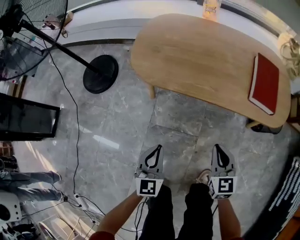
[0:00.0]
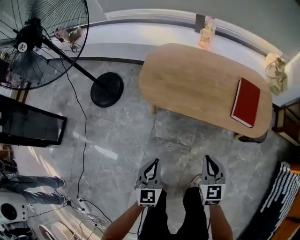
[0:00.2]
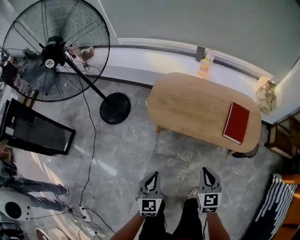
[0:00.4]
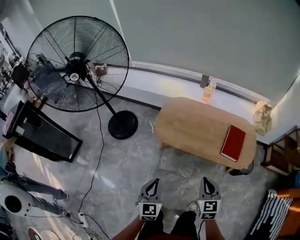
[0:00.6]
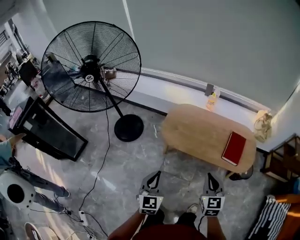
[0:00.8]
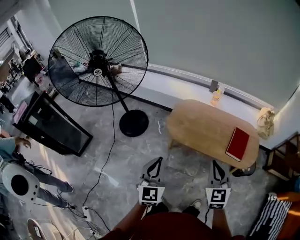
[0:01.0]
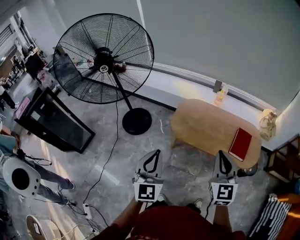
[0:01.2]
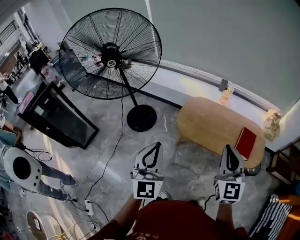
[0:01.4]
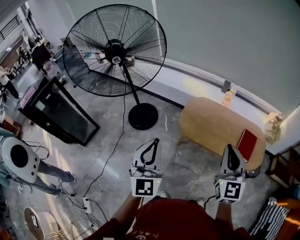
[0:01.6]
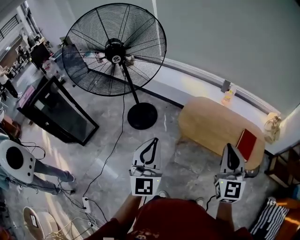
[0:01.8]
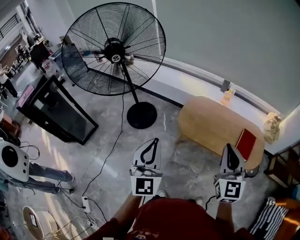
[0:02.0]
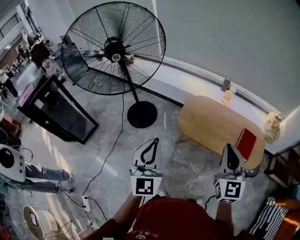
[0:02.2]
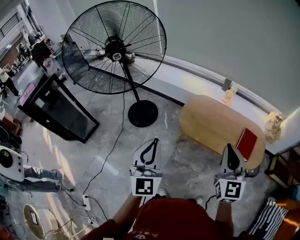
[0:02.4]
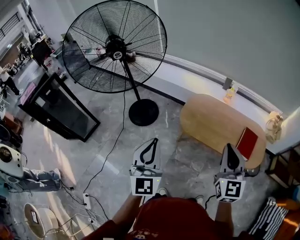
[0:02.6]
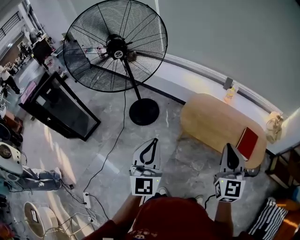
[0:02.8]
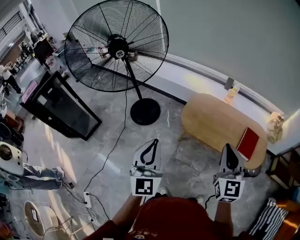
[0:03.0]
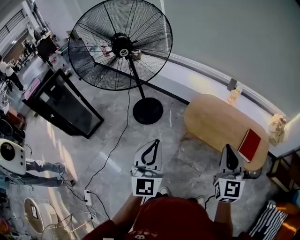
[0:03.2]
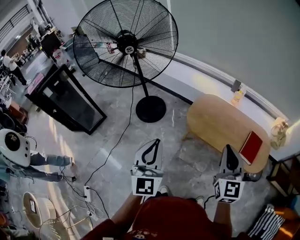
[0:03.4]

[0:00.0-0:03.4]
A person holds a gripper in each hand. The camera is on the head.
0:00.0 to 0:01.6: The two grippers go about 60 cm upward. The left gripper turns by about 30 degrees, while the right gripper turns by roughly 30 degrees.
0:01.6 to 0:03.4: There are only small adjustments of the grippers.

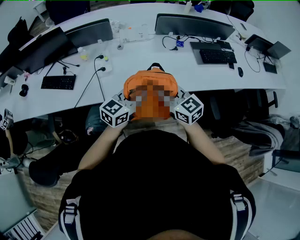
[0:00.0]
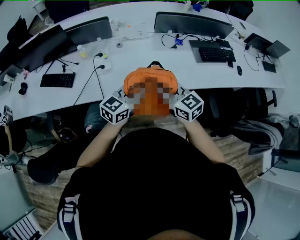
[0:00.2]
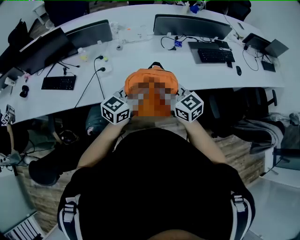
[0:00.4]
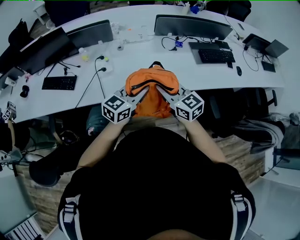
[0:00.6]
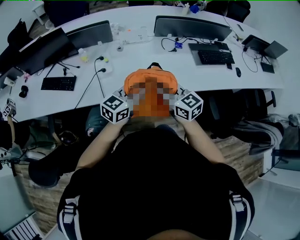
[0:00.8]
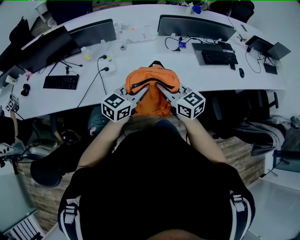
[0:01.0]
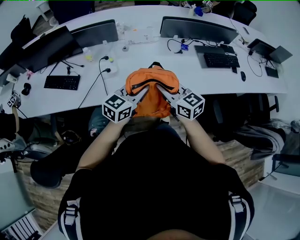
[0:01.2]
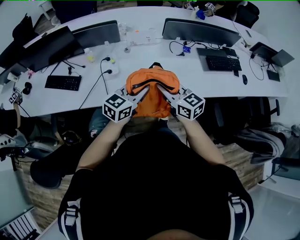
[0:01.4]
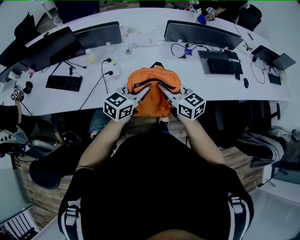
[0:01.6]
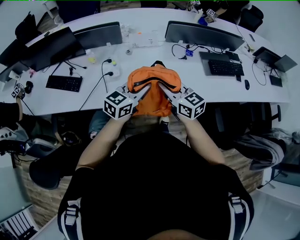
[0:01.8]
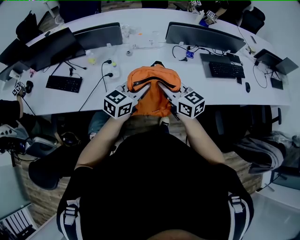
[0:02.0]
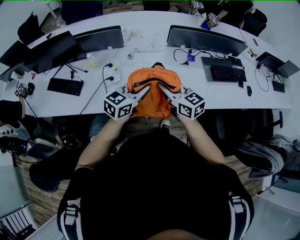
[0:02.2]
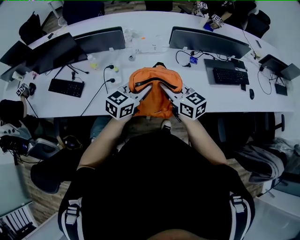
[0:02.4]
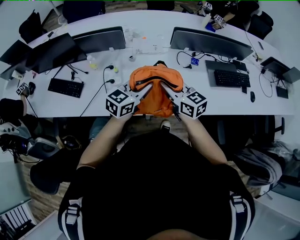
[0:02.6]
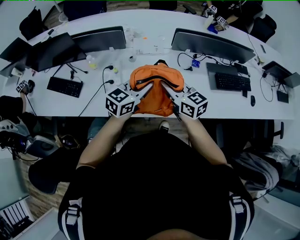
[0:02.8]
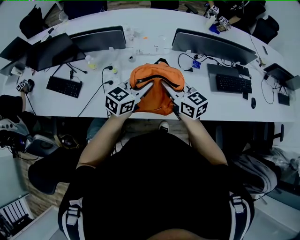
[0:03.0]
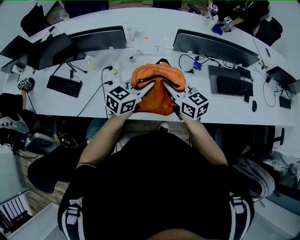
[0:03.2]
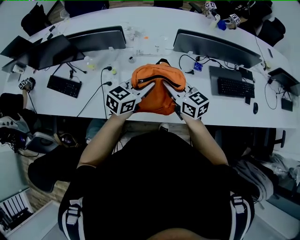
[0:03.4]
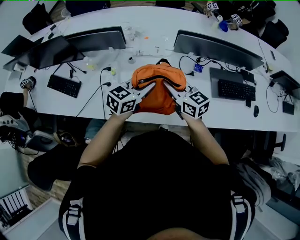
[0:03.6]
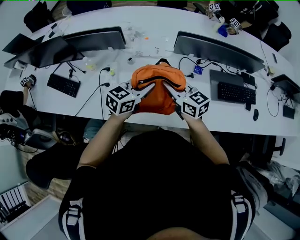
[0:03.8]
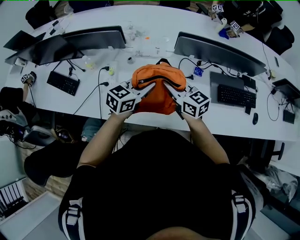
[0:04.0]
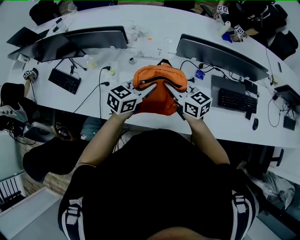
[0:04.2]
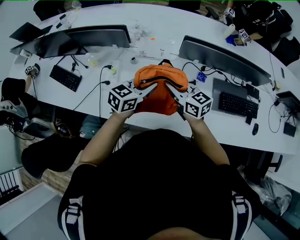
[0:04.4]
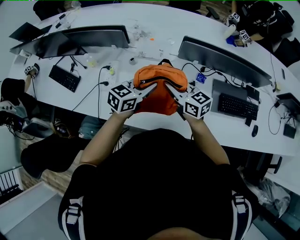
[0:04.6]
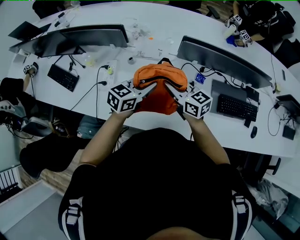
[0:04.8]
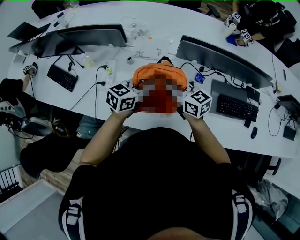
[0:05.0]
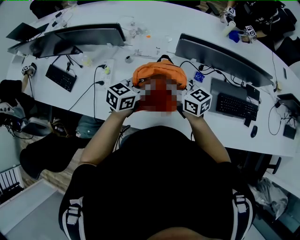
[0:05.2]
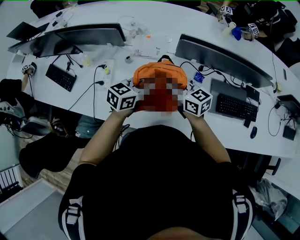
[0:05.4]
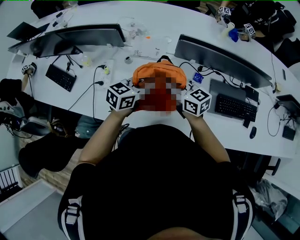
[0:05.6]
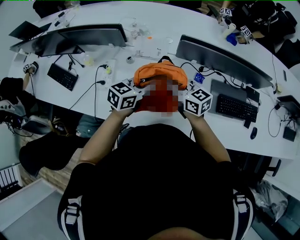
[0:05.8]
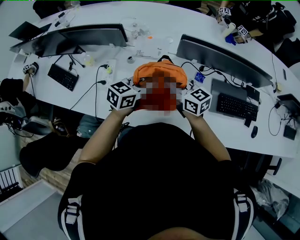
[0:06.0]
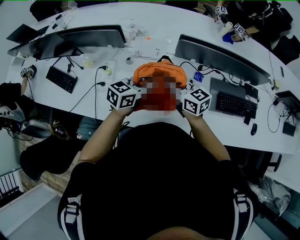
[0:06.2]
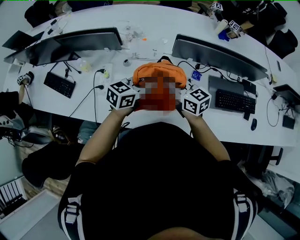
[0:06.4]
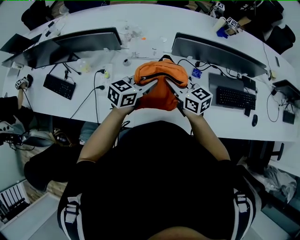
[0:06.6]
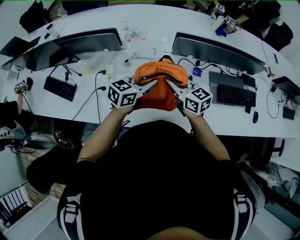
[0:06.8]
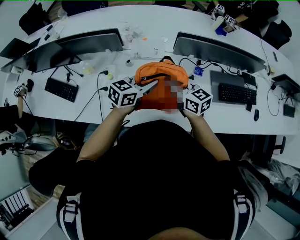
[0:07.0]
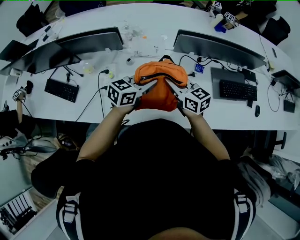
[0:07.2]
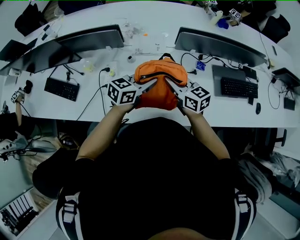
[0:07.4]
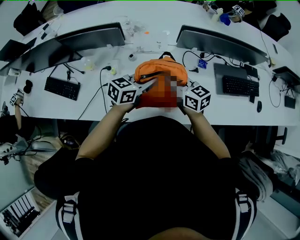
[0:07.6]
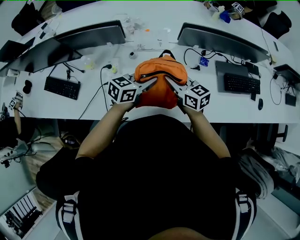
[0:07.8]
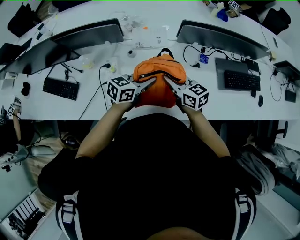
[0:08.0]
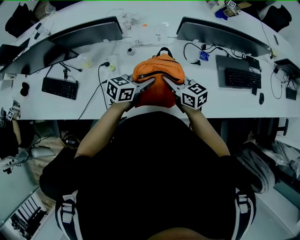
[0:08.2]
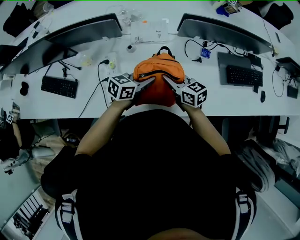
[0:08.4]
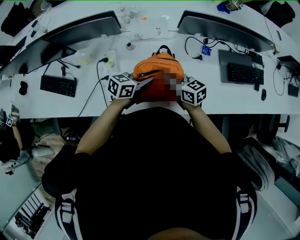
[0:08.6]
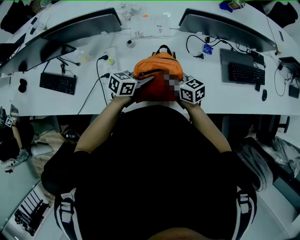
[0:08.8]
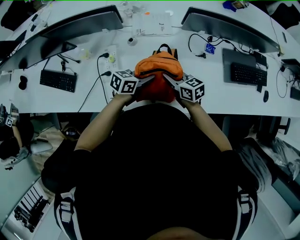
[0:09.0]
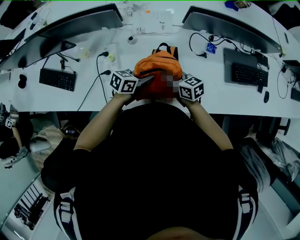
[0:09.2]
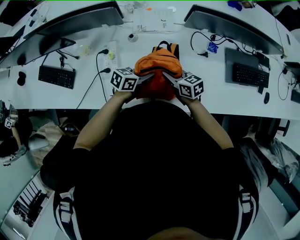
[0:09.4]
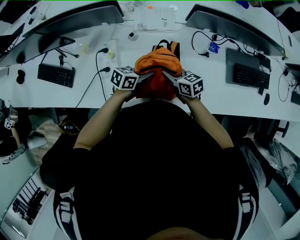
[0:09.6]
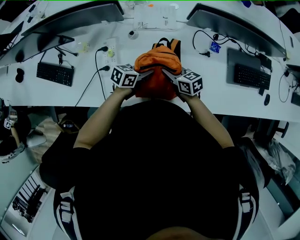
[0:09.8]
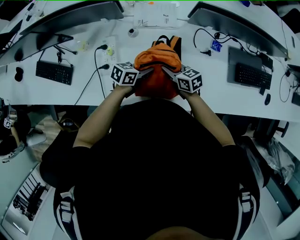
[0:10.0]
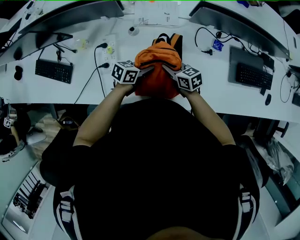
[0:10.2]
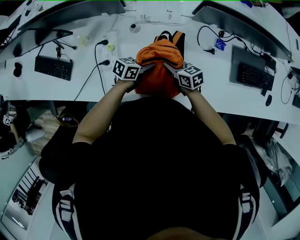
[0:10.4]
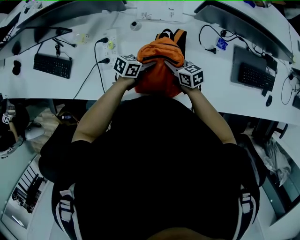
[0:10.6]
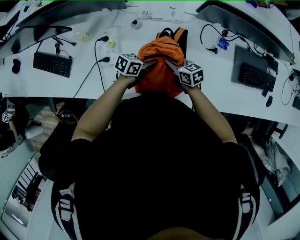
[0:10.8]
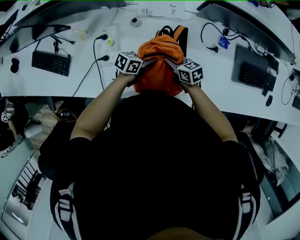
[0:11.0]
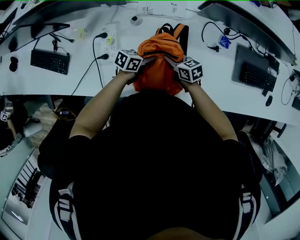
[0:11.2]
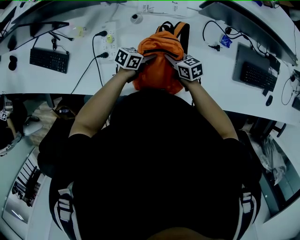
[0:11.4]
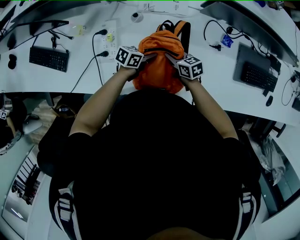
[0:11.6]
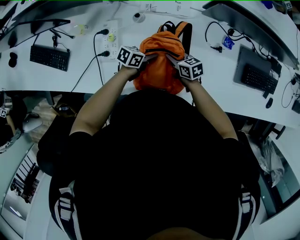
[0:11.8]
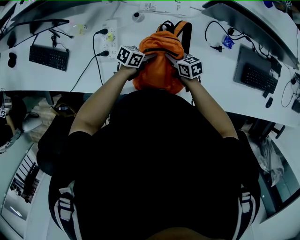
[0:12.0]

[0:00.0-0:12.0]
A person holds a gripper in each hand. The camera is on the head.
0:00.0 to 0:01.6: Both grippers move forward, about 5 cm.
0:01.6 to 0:03.0: Both grippers travel together forward, about 15 cm.
0:03.0 to 0:04.4: Both grippers move forward and to the right, roughly 15 cm.
0:04.4 to 0:06.0: There are only small adjustments of the grippers.
0:06.0 to 0:07.6: The two grippers go some 10 cm to the left.
0:07.6 to 0:09.0: Both grippers travel together downward, roughly 15 cm.
0:09.0 to 0:10.4: Both grippers travel together downward, some 10 cm.
0:10.4 to 0:12.0: Both grippers travel together downward, about 10 cm.

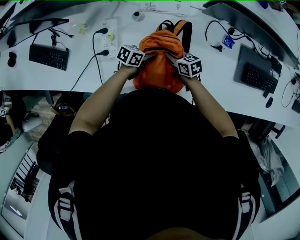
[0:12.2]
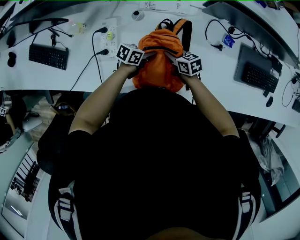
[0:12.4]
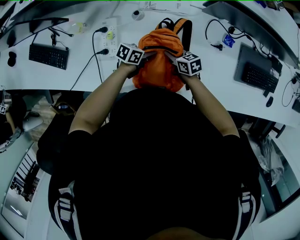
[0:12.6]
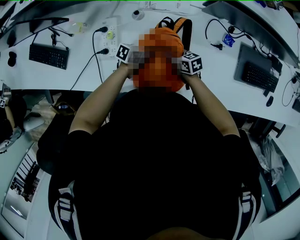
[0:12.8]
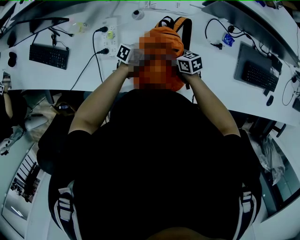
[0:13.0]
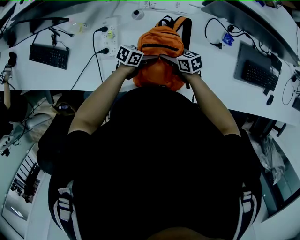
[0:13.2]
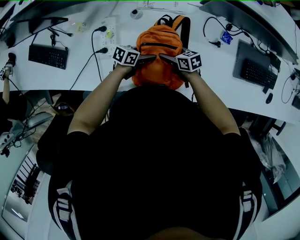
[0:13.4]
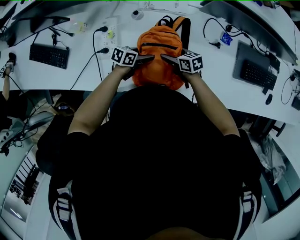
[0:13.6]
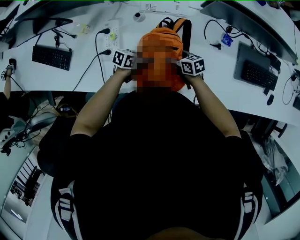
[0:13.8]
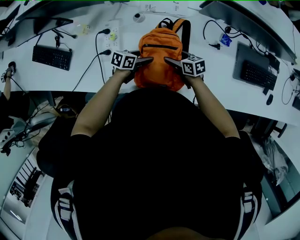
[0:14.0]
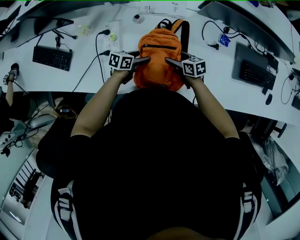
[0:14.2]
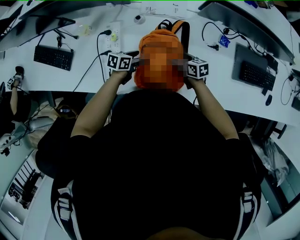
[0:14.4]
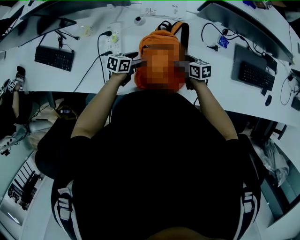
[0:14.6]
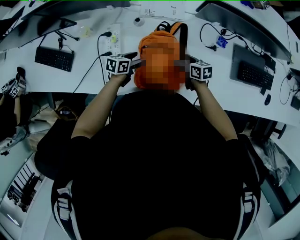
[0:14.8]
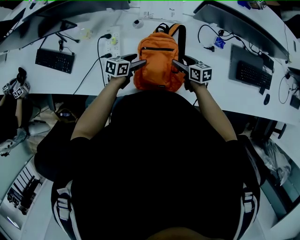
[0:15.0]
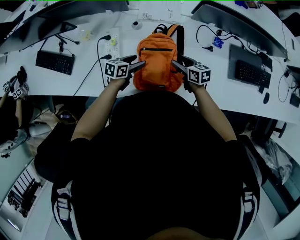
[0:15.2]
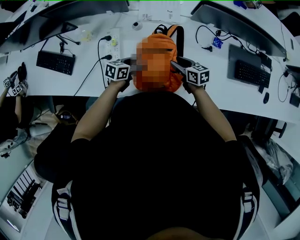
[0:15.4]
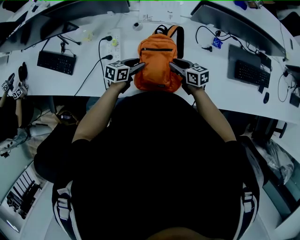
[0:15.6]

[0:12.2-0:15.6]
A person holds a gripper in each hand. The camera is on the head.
0:12.2 to 0:13.8: The left gripper opens. Meanwhile the right gripper opens its fingers.
0:13.8 to 0:15.6: Both grippers travel together upward, roughly 10 cm. The right gripper closes. Meanwhile the left gripper closes up.

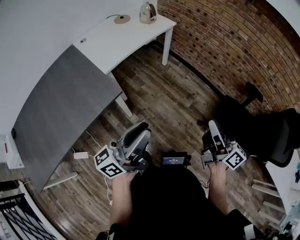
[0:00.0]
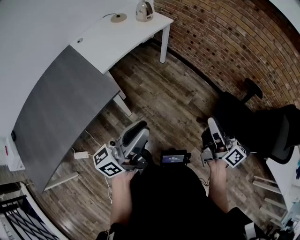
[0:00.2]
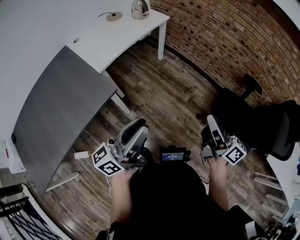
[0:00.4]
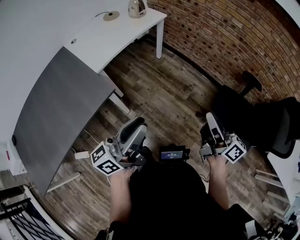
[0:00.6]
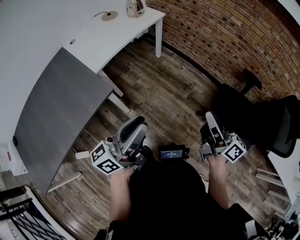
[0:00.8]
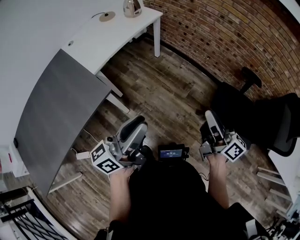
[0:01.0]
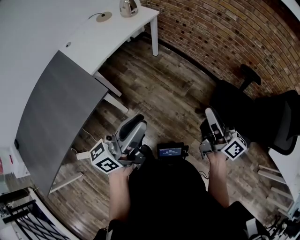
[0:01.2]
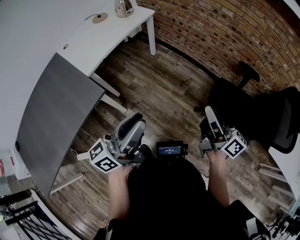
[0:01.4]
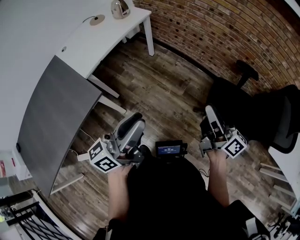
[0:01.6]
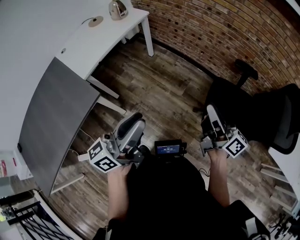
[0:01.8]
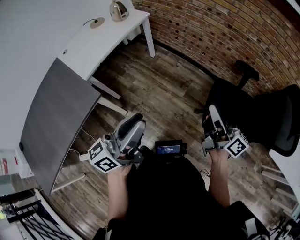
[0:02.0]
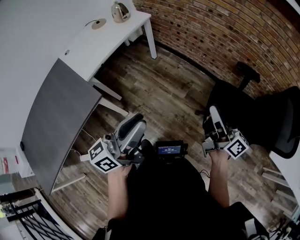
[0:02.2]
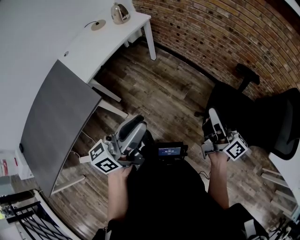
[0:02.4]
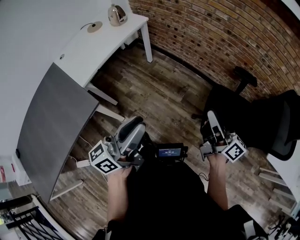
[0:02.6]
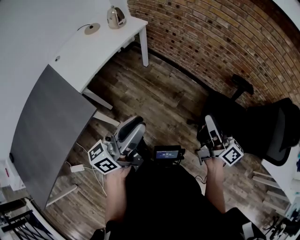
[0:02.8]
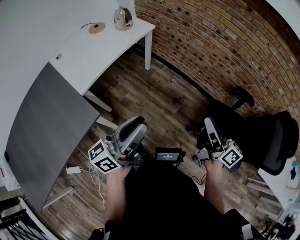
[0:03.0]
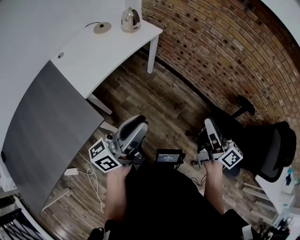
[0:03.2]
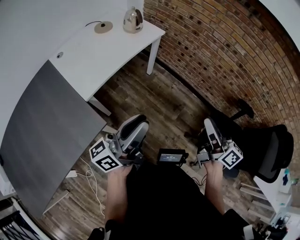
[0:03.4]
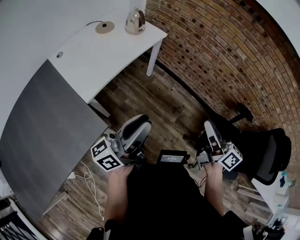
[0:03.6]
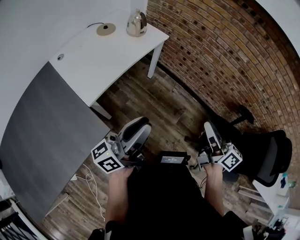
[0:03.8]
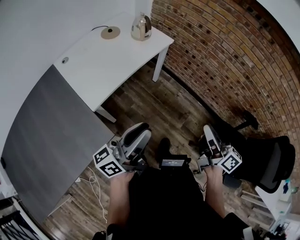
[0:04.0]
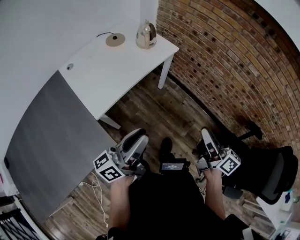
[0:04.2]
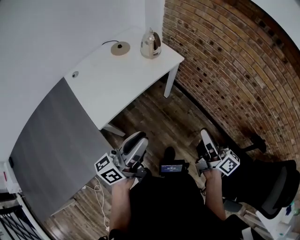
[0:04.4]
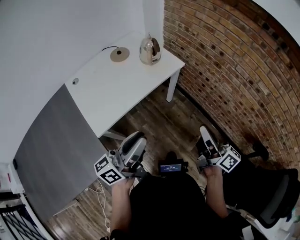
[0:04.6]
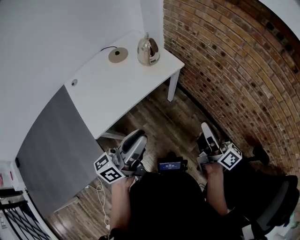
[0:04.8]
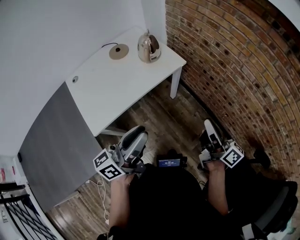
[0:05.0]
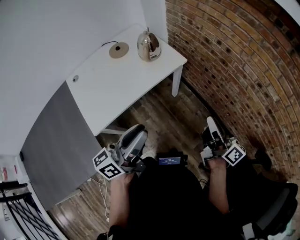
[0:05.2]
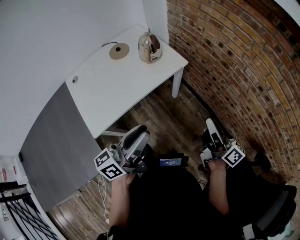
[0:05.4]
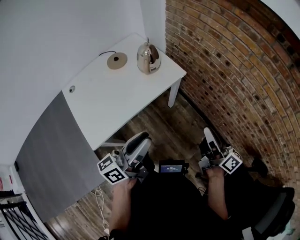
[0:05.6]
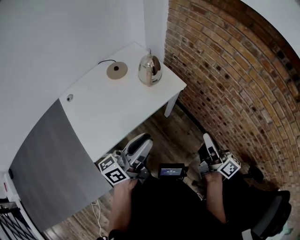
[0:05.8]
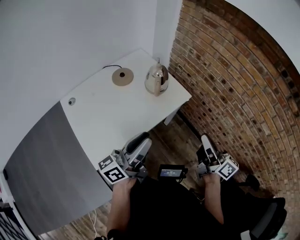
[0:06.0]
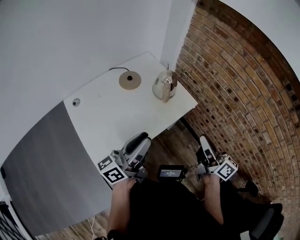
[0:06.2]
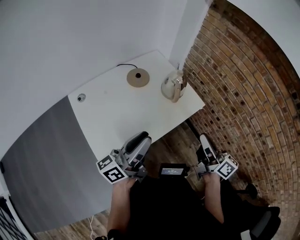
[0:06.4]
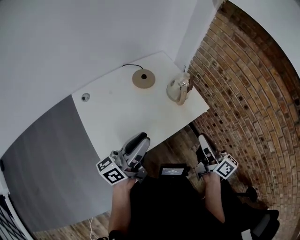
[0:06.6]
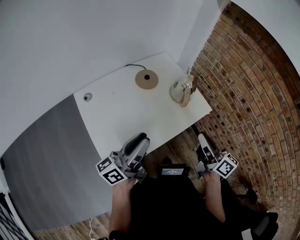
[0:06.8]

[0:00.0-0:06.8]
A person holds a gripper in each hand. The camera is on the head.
0:00.0 to 0:01.4: The two grippers go roughly 10 cm to the right.
0:01.4 to 0:02.8: Both grippers move forward, some 5 cm.
0:02.8 to 0:04.0: The grippers both shift to the left and forward by some 20 cm.
0:04.0 to 0:05.4: The two grippers go roughly 25 cm forward.
0:05.4 to 0:06.8: The two grippers go about 25 cm to the left and forward.
